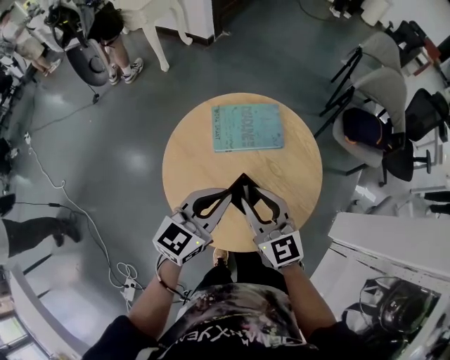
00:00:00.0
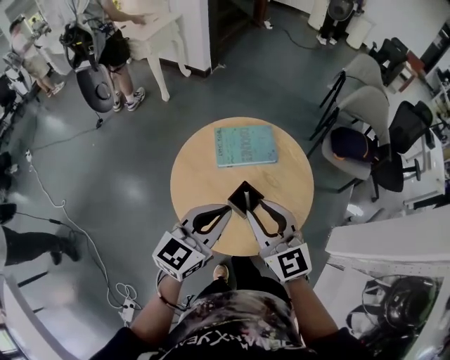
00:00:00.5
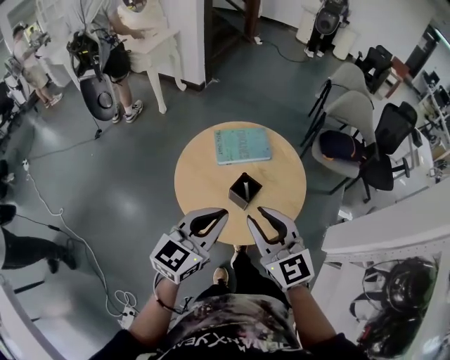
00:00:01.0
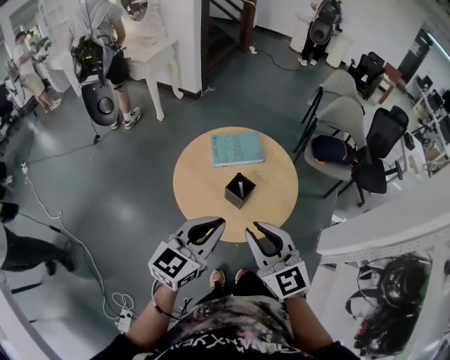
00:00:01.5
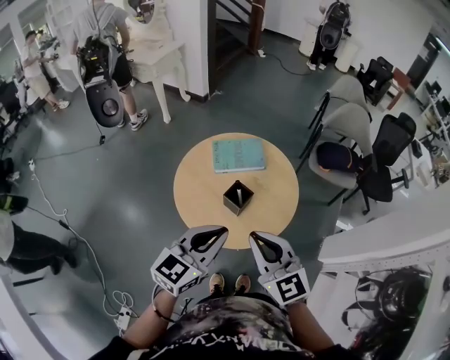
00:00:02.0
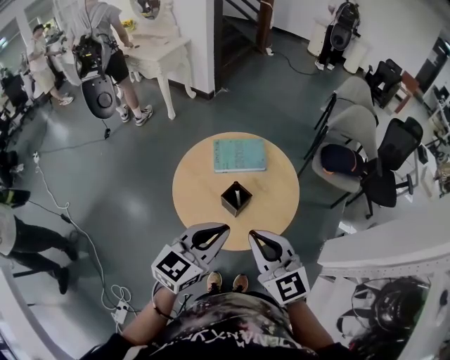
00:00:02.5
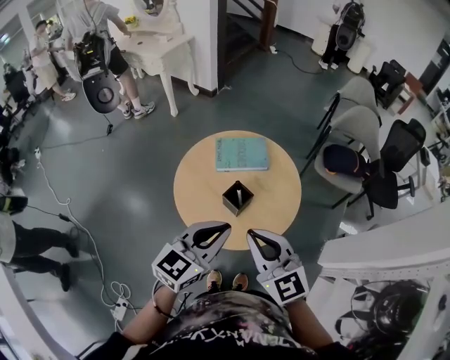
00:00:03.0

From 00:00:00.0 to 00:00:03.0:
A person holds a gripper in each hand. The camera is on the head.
From 00:00:00.0 to 00:00:01.5: Both grippers move backward and upward, some 25 cm.
From 00:00:01.5 to 00:00:03.0: The right gripper moves roughly 5 cm. The left gripper travels to the right by about 5 cm.

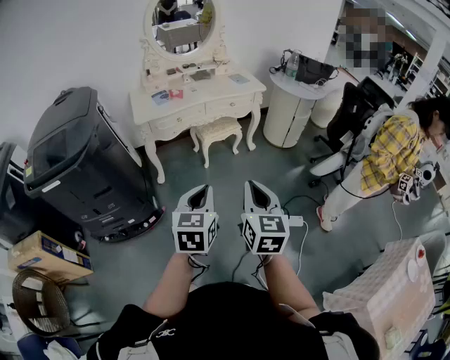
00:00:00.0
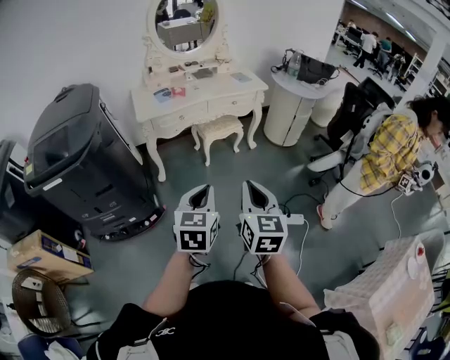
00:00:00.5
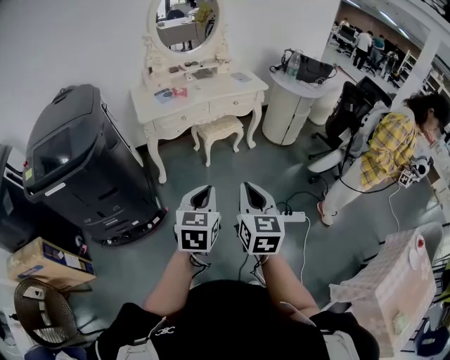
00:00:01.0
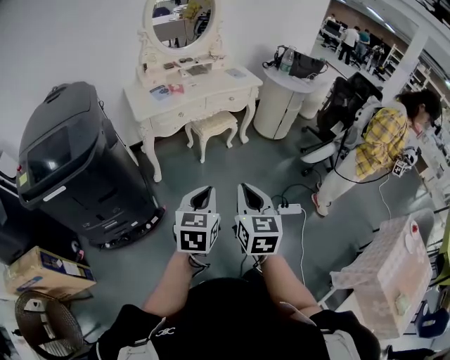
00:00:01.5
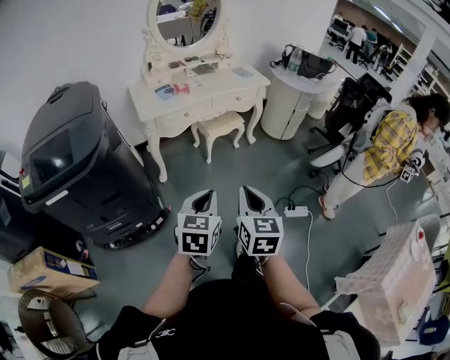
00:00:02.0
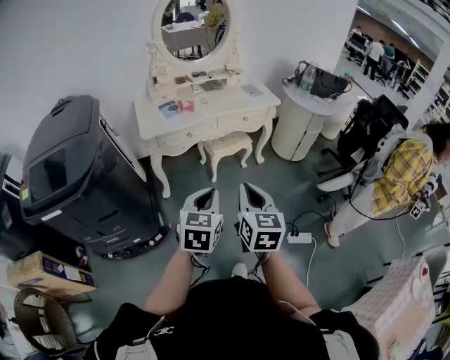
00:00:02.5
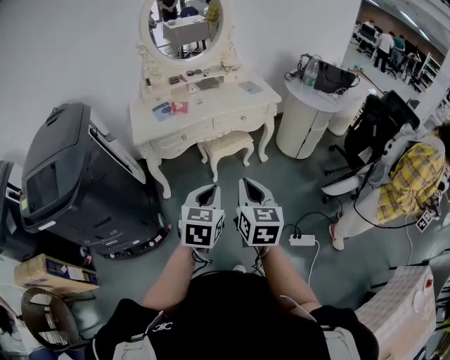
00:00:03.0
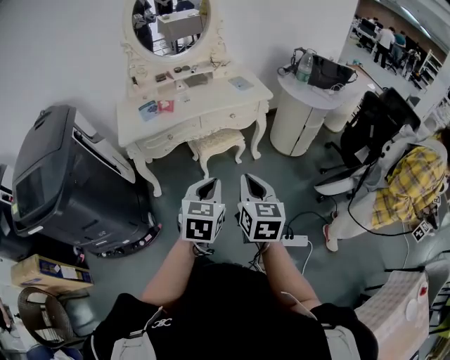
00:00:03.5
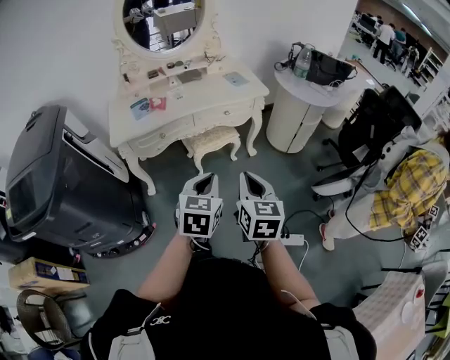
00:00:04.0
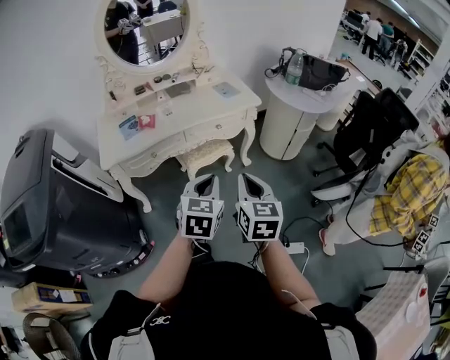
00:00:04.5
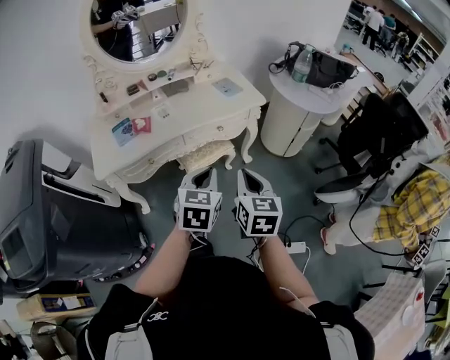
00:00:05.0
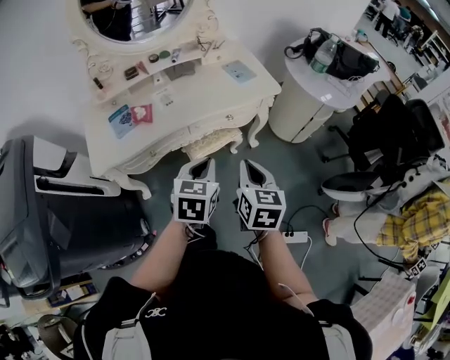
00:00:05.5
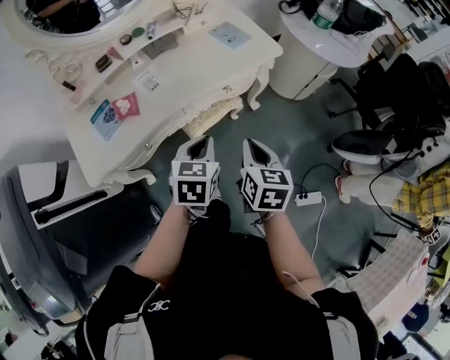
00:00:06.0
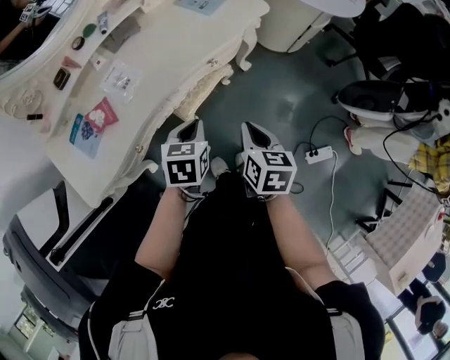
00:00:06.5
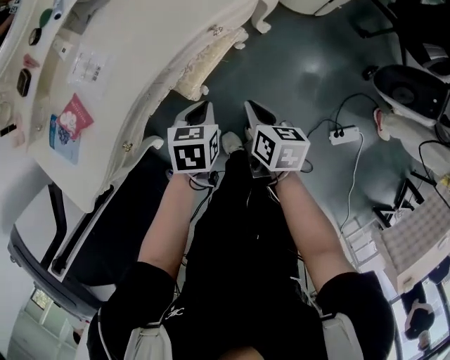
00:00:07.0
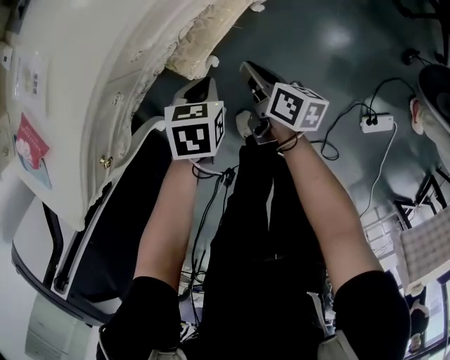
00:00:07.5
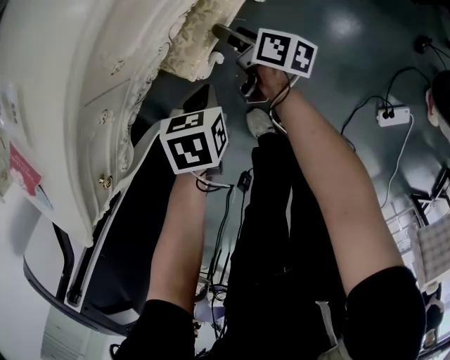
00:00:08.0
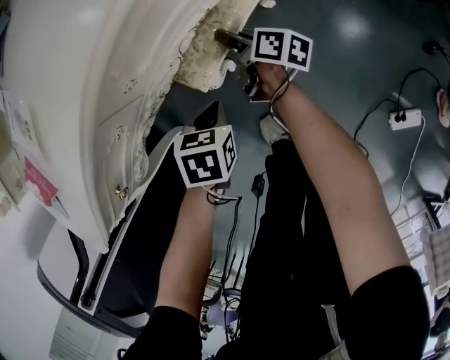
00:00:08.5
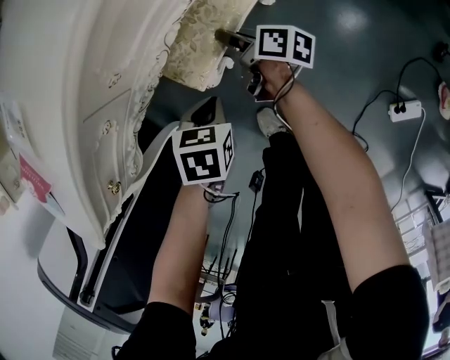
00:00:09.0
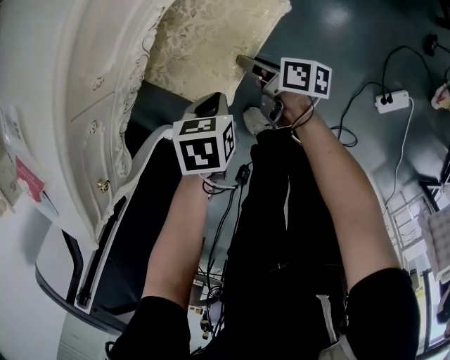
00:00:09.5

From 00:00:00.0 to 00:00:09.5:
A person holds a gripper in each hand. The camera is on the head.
From 00:00:00.0 to 00:00:02.0: The grippers both shift to the left by about 15 cm.
From 00:00:02.0 to 00:00:04.0: The grippers both shift forward and to the right by roughly 35 cm.
From 00:00:04.0 to 00:00:05.5: The two grippers go approximately 25 cm forward.
From 00:00:05.5 to 00:00:07.5: The grippers both shift downward by roughly 50 cm. The left gripper tilts its fingers about 30 degrees downward. The right gripper twists approximately 50 degrees clockwise, seen from behind.
From 00:00:07.5 to 00:00:09.5: The right gripper moves downward, some 10 cm, goes forward and returns, approximately 10 cm each way, and opens. The left gripper travels backward by roughly 5 cm.

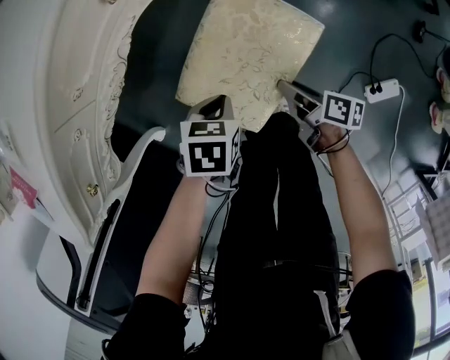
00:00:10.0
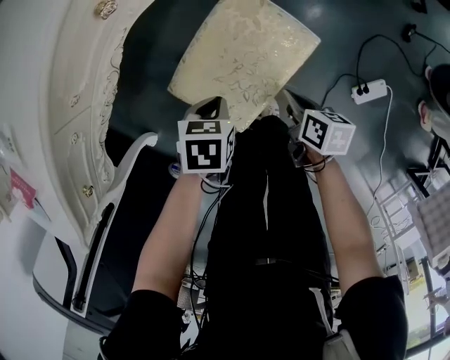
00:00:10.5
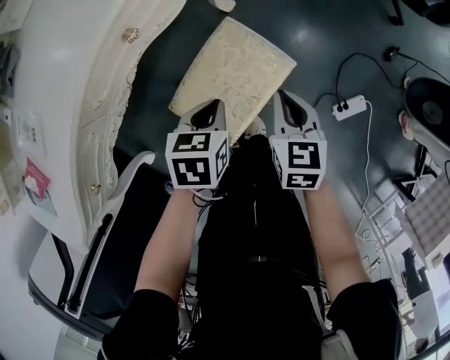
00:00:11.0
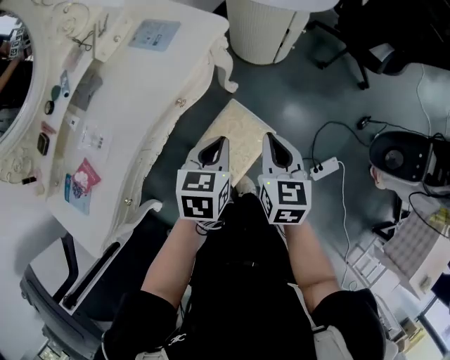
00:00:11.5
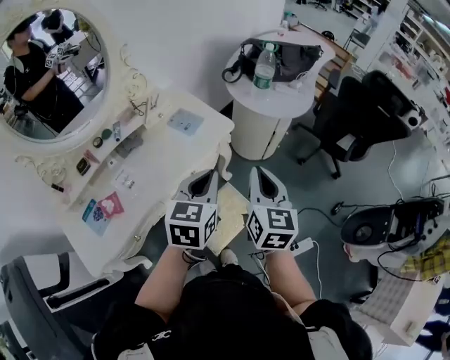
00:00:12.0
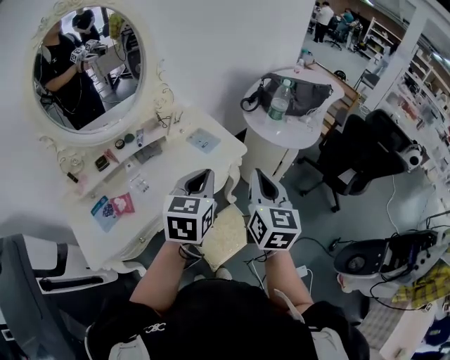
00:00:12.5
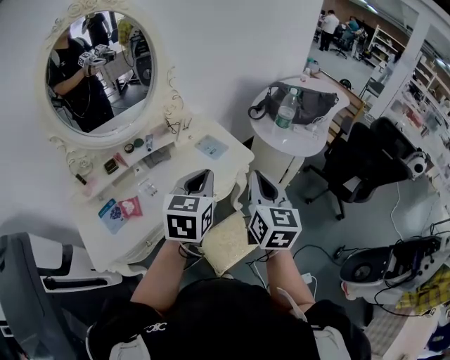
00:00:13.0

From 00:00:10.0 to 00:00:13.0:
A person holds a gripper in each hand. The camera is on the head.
From 00:00:10.0 to 00:00:11.5: The grippers both shift upward by approximately 40 cm. The left gripper angles its fingers upward, by some 30 degrees; the right gripper turns by approximately 70 degrees, and closes its fingers.
From 00:00:11.5 to 00:00:13.0: Both grippers travel together upward, approximately 30 cm. The right gripper rotates some 30 degrees. Meanwhile the left gripper turns by about 30 degrees.

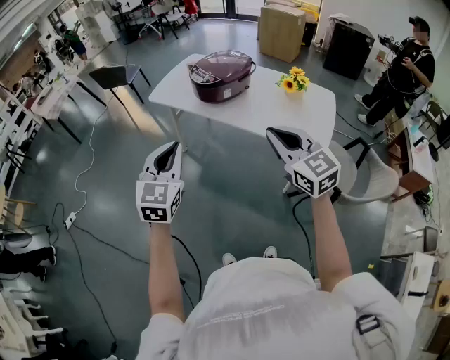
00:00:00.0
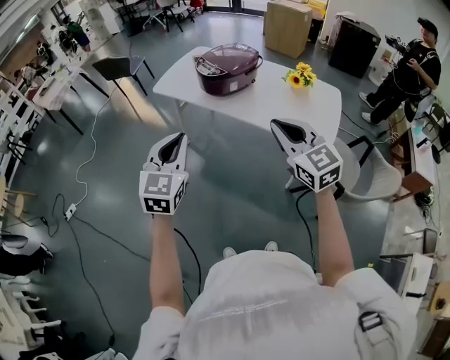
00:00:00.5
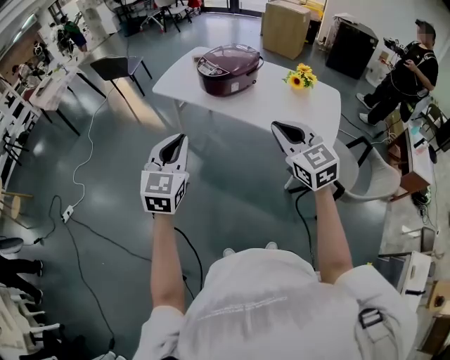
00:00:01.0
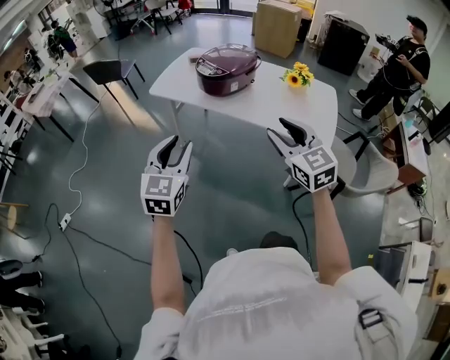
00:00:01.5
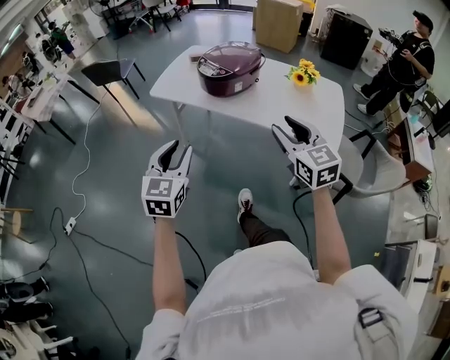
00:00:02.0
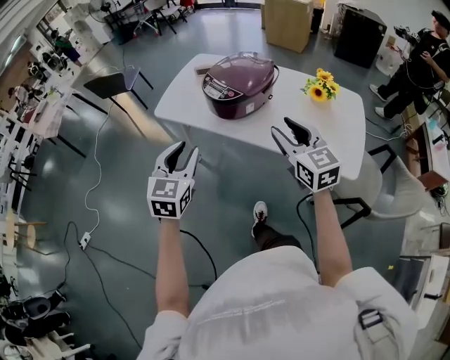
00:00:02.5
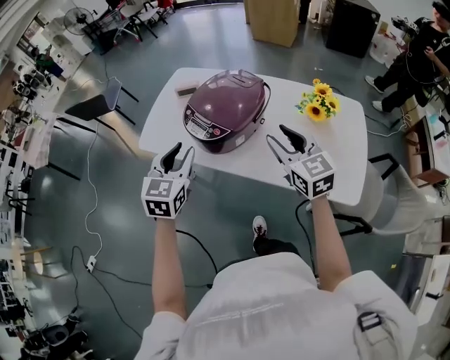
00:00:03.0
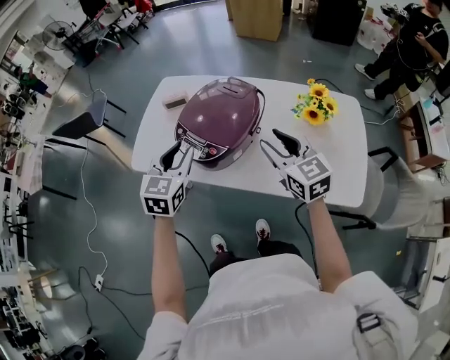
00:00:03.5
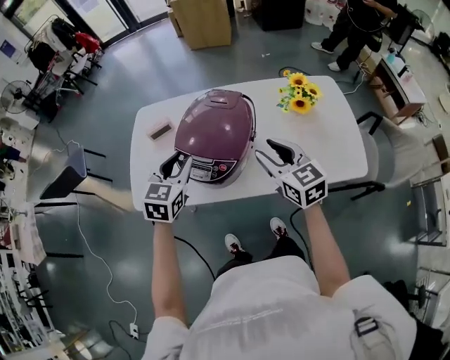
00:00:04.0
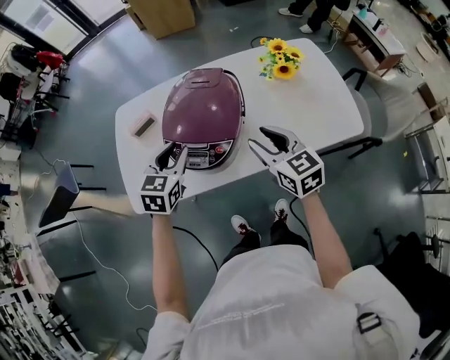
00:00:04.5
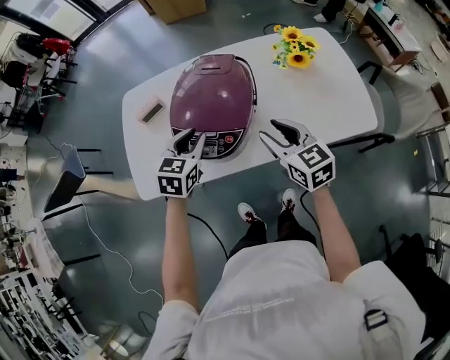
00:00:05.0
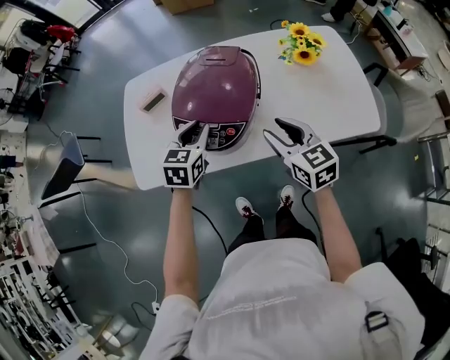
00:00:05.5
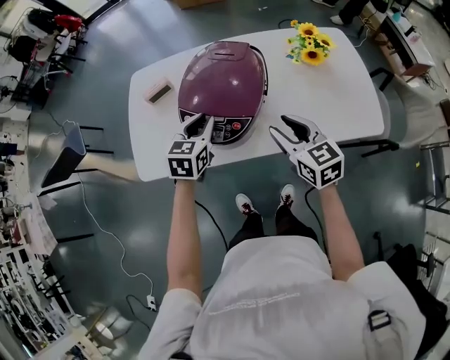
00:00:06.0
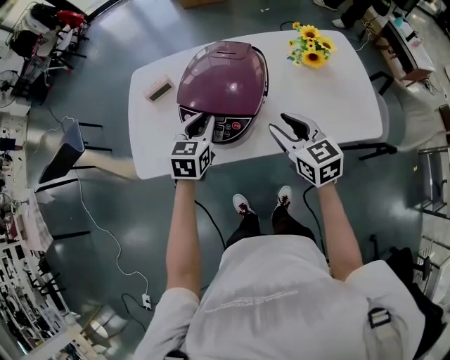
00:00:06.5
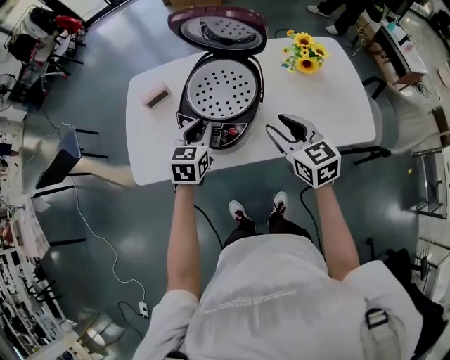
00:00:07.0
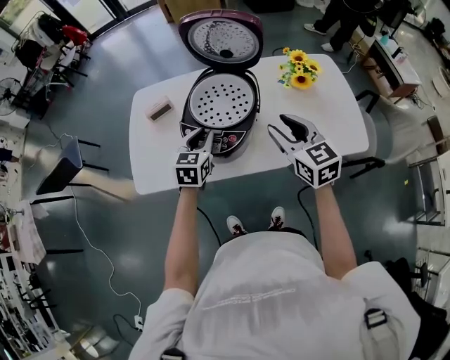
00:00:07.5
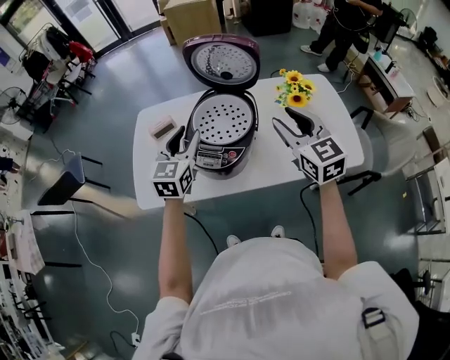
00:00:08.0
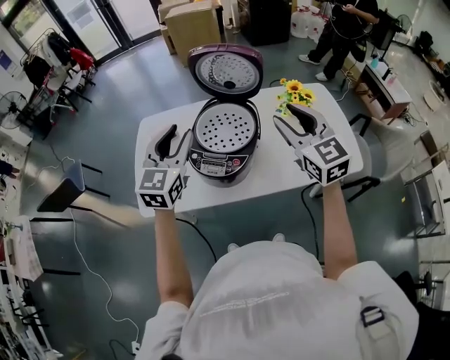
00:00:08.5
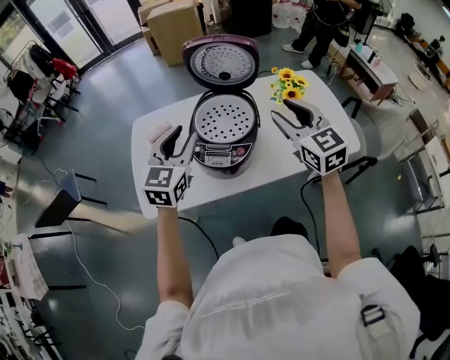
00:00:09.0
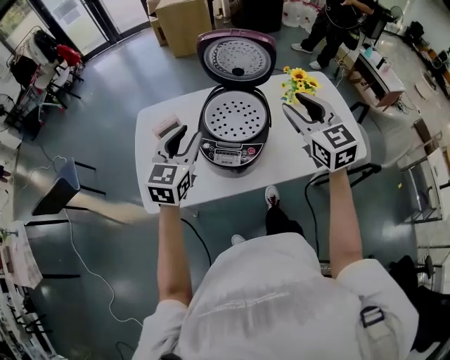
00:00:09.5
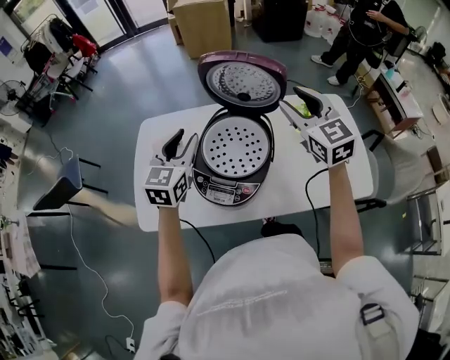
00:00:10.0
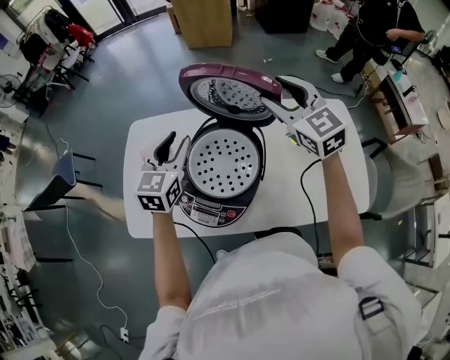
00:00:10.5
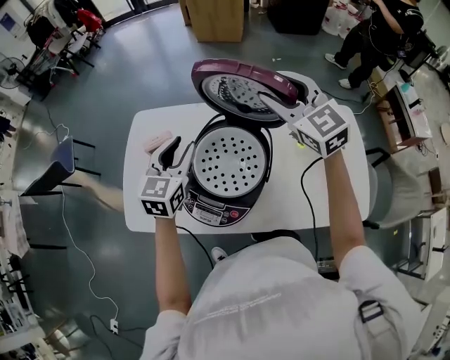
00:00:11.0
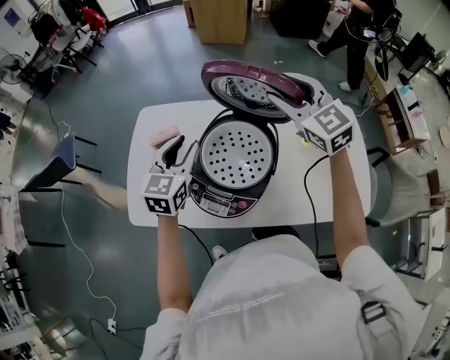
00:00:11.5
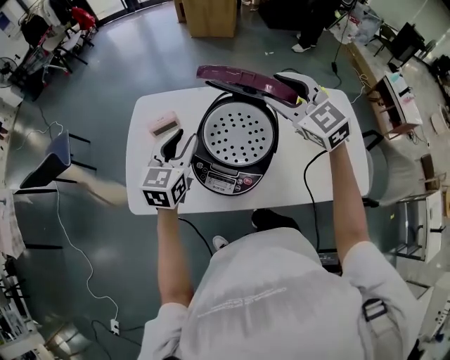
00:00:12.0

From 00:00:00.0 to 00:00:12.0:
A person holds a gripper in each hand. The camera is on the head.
From 00:00:00.0 to 00:00:02.0: The right gripper heads forward, covering roughly 5 cm, and opens. The left gripper goes about 10 cm to the left, forward and downward, and opens.
From 00:00:02.0 to 00:00:04.0: The right gripper shifts by about 35 cm, and rotates roughly 20 degrees. The left gripper changes place by approximately 50 cm, and swivels some 30 degrees.
From 00:00:04.0 to 00:00:06.0: The right gripper goes some 5 cm downward. The left gripper moves downward, roughly 10 cm.
From 00:00:06.0 to 00:00:08.0: Both grippers move upward, roughly 15 cm. The left gripper swivels approximately 20 degrees. The right gripper turns by some 20 degrees.
From 00:00:08.0 to 00:00:10.0: The left gripper moves forward, approximately 10 cm. Meanwhile the right gripper goes some 15 cm forward.
From 00:00:10.0 to 00:00:12.0: The left gripper moves roughly 5 cm forward and comes back. The right gripper is displaced to the left by approximately 10 cm, moves about 10 cm forward and comes back, and turns by roughly 20 degrees.
